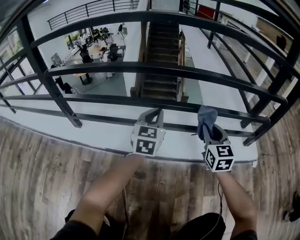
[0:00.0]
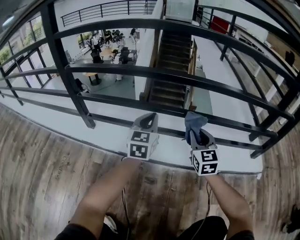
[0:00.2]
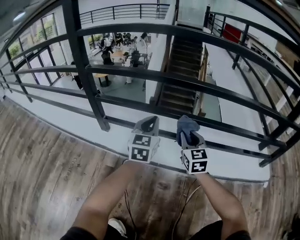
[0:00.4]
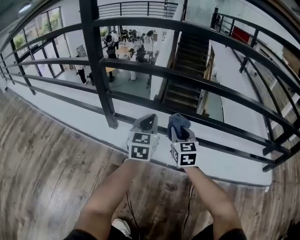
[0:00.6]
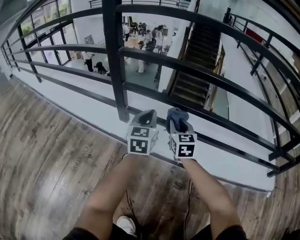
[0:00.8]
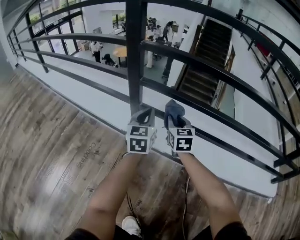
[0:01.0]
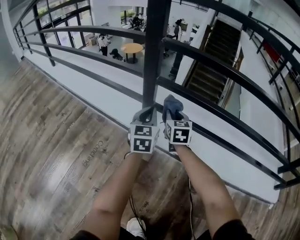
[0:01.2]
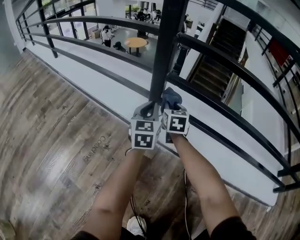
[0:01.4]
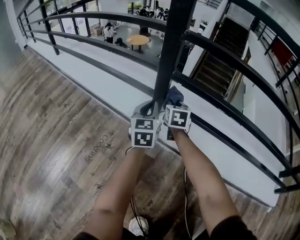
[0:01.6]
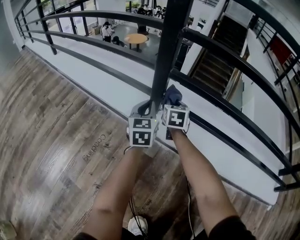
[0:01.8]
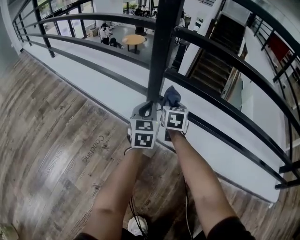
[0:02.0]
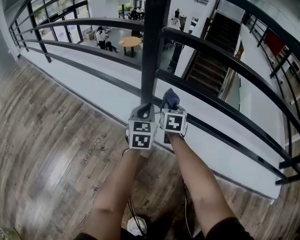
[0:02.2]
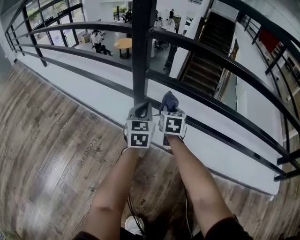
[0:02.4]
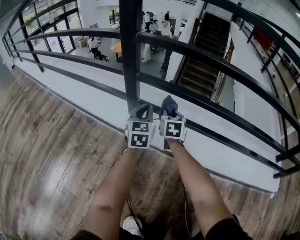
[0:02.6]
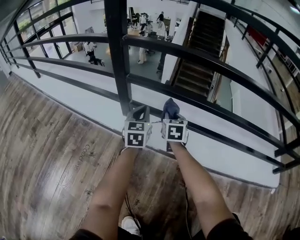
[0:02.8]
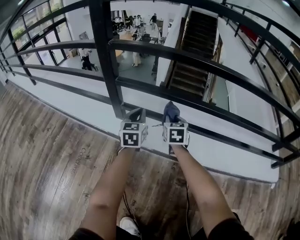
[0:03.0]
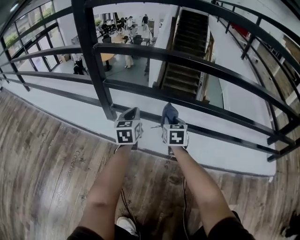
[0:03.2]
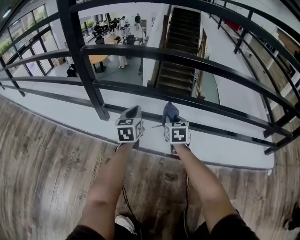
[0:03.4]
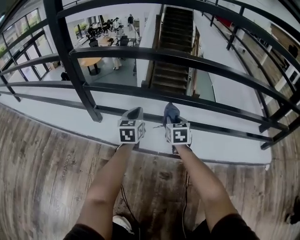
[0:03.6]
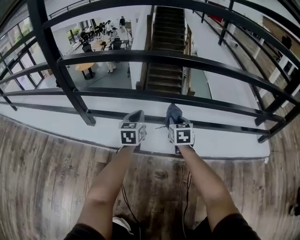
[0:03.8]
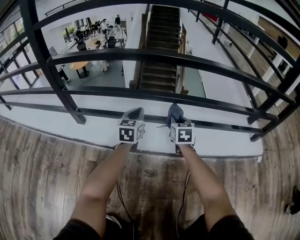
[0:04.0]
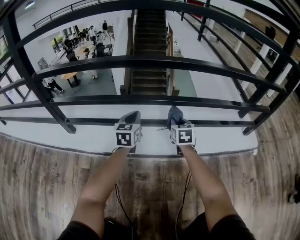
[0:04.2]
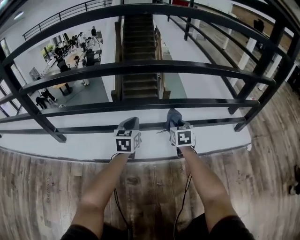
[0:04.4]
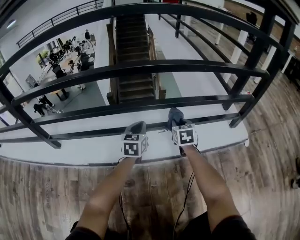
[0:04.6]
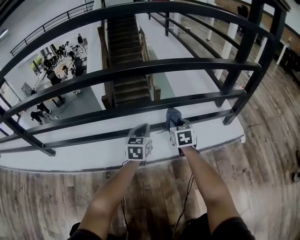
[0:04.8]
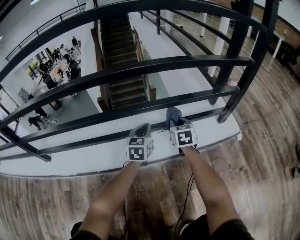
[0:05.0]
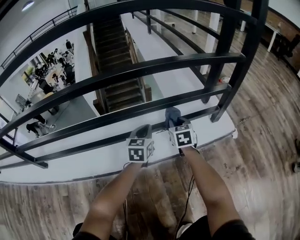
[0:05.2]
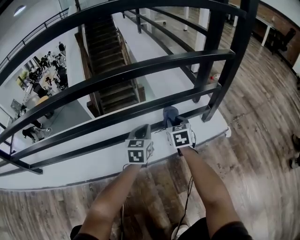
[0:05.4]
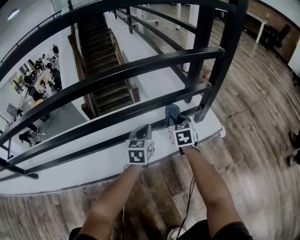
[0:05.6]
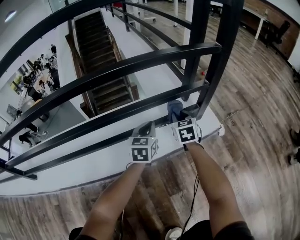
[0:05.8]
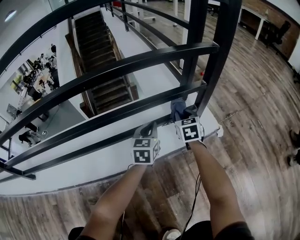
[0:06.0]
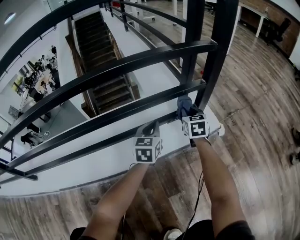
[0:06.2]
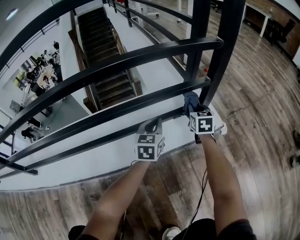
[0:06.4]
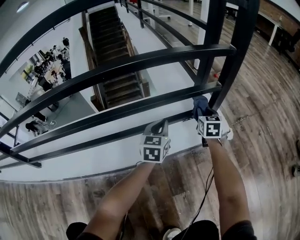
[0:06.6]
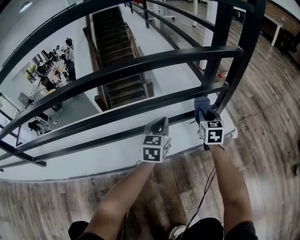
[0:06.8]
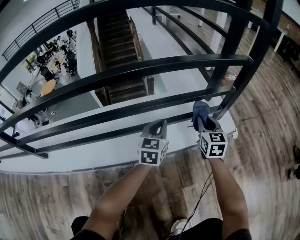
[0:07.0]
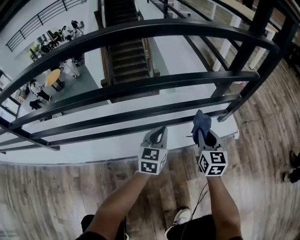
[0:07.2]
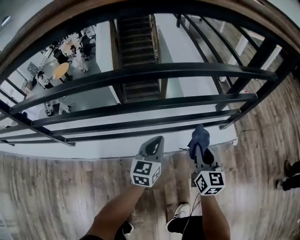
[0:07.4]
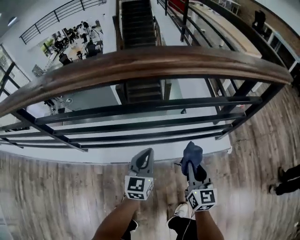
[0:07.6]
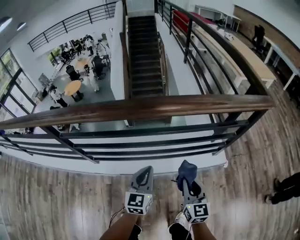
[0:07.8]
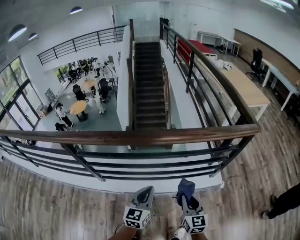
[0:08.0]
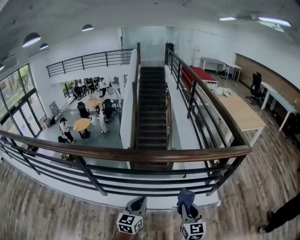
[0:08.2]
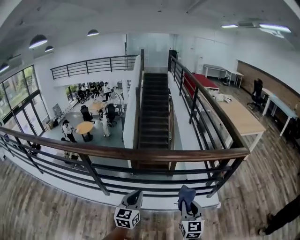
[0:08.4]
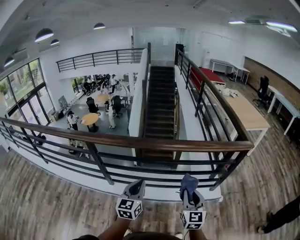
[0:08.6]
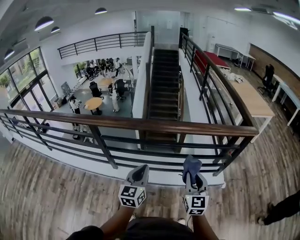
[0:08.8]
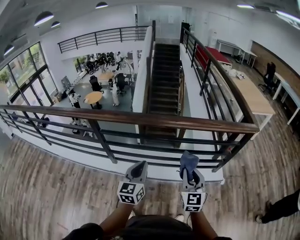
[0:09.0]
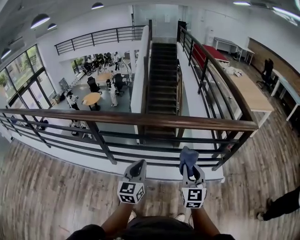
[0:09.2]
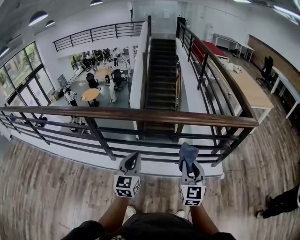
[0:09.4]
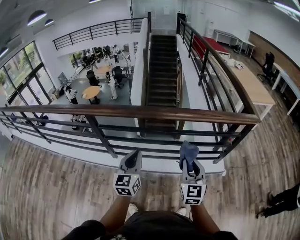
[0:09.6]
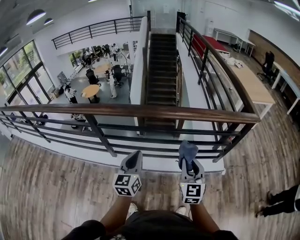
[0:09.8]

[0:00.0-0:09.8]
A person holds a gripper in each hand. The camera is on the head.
0:00.0 to 0:01.4: The pair of grippers is taken roughly 70 cm. The left gripper turns by roughly 30 degrees; the right gripper swivels about 30 degrees.
0:01.4 to 0:02.8: Both grippers move to the right, about 15 cm.
0:02.8 to 0:04.2: The grippers both shift to the right by roughly 40 cm. The left gripper swivels roughly 20 degrees.
0:04.2 to 0:05.6: Both grippers are carried to the right, approximately 50 cm. The left gripper swivels some 20 degrees.
0:05.6 to 0:07.0: The left gripper heads upward, covering approximately 5 cm. Meanwhile the right gripper shifts approximately 10 cm upward and backward, and moves roughly 10 cm to the right and comes back.
0:07.0 to 0:08.4: The pair of grippers is taken backward and to the left, roughly 50 cm. The two grippers go roughly 80 cm upward. The left gripper changes its angle by some 20 degrees. The right gripper changes its angle by roughly 20 degrees.
0:08.4 to 0:09.8: The grippers stay close to where they were, moving slightly.

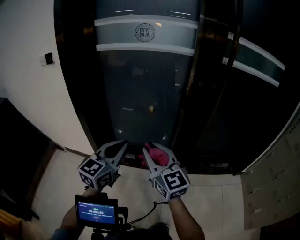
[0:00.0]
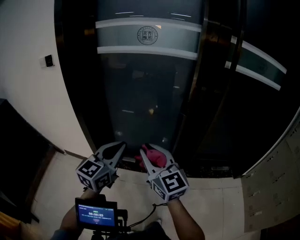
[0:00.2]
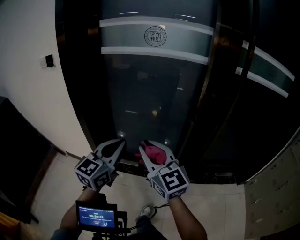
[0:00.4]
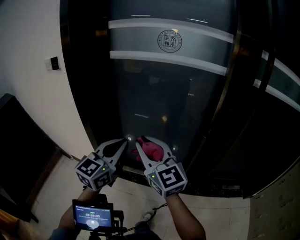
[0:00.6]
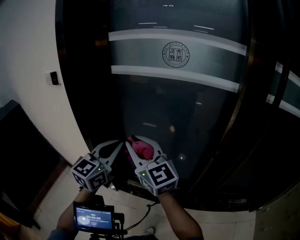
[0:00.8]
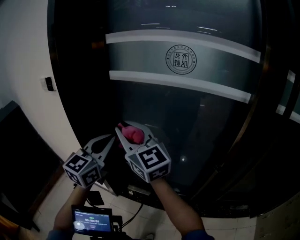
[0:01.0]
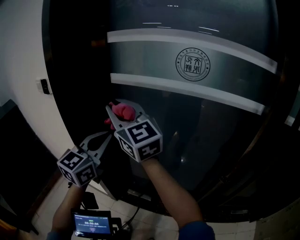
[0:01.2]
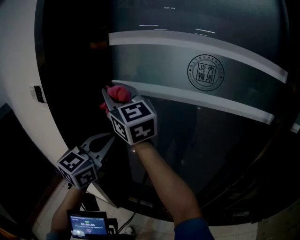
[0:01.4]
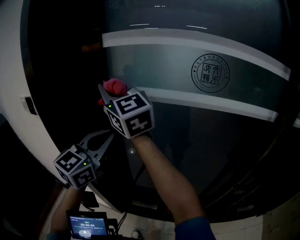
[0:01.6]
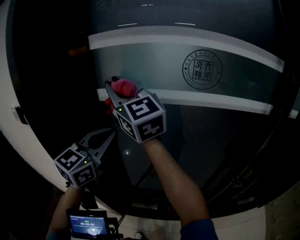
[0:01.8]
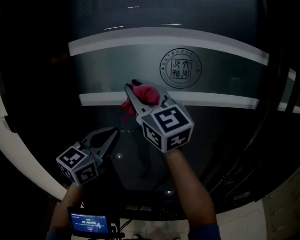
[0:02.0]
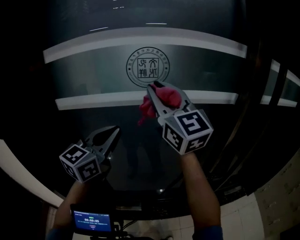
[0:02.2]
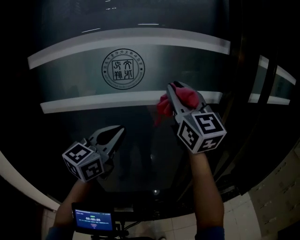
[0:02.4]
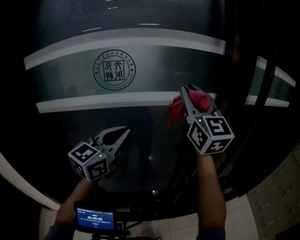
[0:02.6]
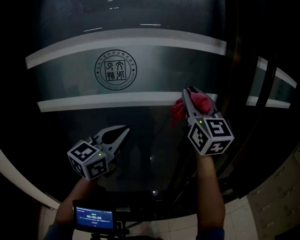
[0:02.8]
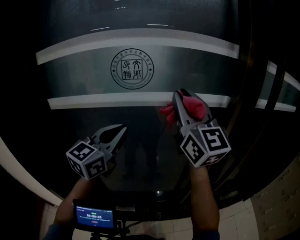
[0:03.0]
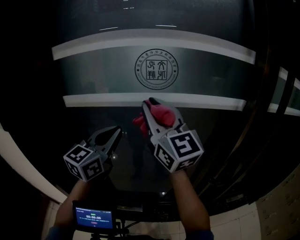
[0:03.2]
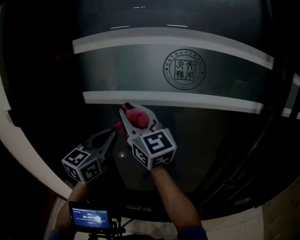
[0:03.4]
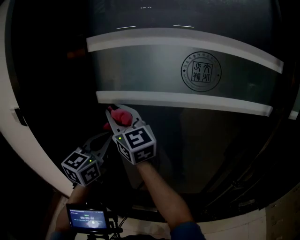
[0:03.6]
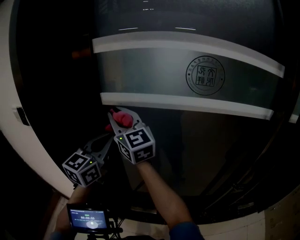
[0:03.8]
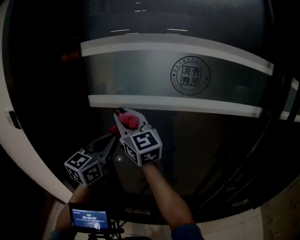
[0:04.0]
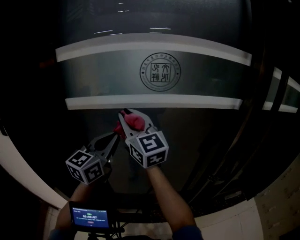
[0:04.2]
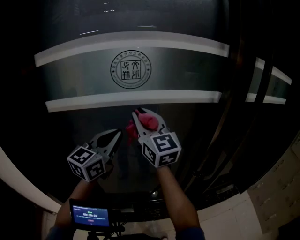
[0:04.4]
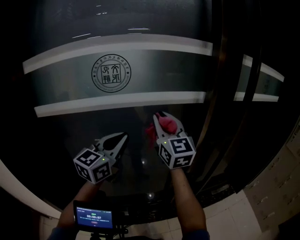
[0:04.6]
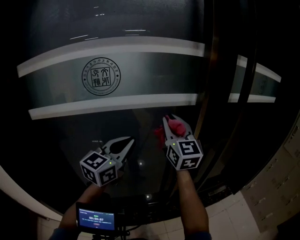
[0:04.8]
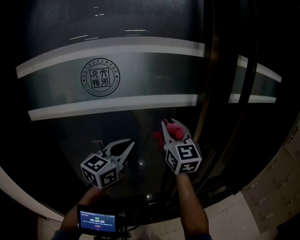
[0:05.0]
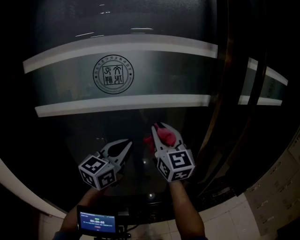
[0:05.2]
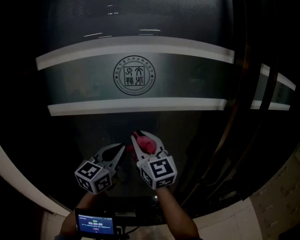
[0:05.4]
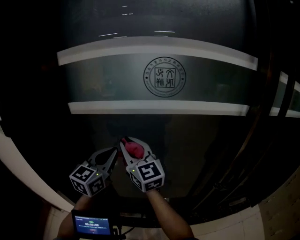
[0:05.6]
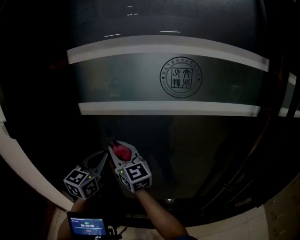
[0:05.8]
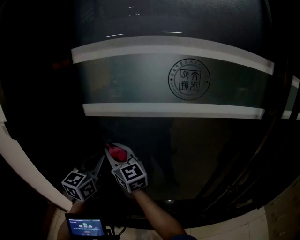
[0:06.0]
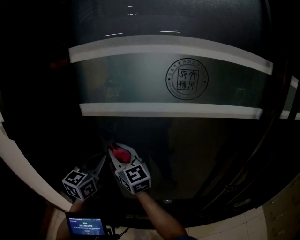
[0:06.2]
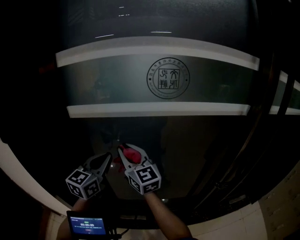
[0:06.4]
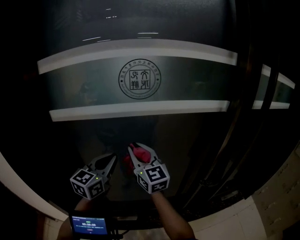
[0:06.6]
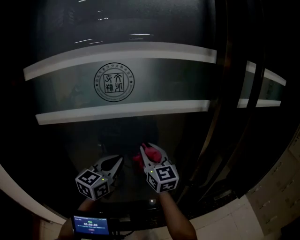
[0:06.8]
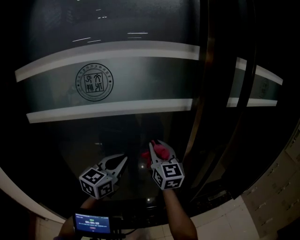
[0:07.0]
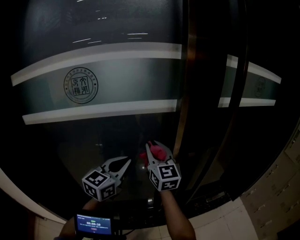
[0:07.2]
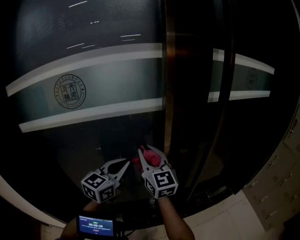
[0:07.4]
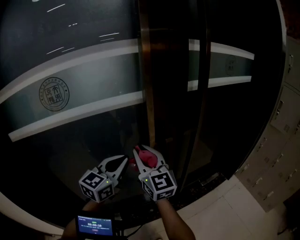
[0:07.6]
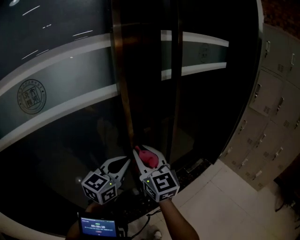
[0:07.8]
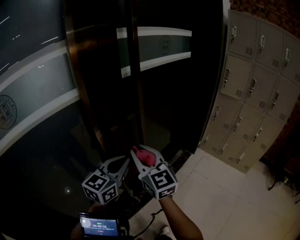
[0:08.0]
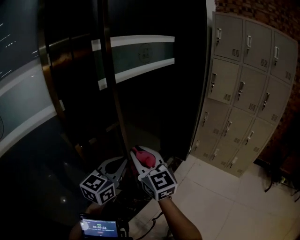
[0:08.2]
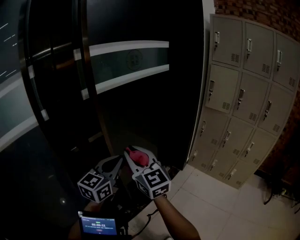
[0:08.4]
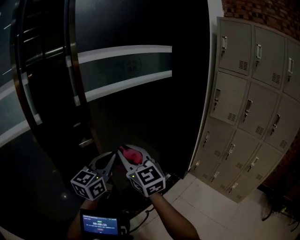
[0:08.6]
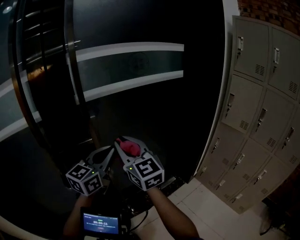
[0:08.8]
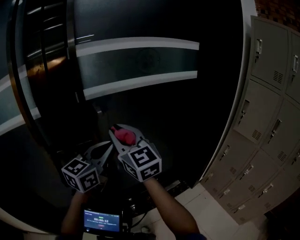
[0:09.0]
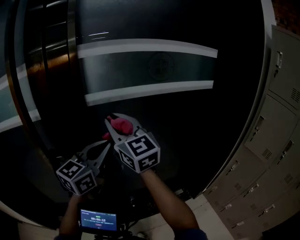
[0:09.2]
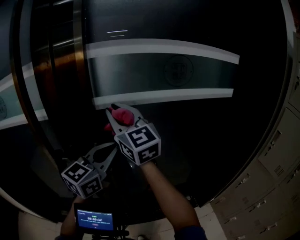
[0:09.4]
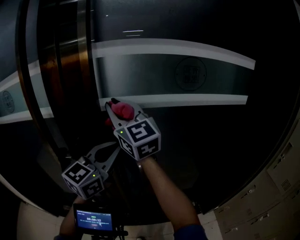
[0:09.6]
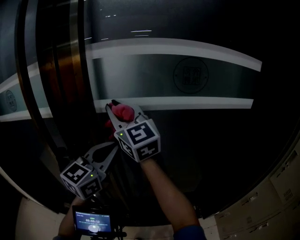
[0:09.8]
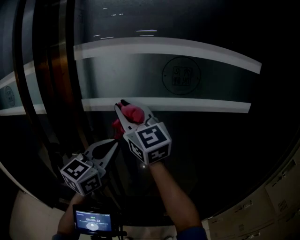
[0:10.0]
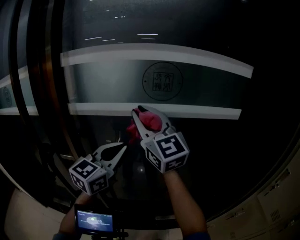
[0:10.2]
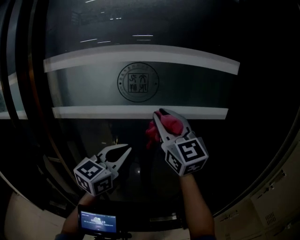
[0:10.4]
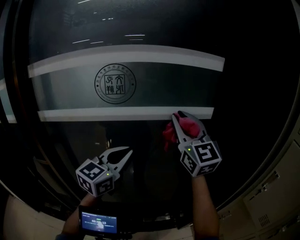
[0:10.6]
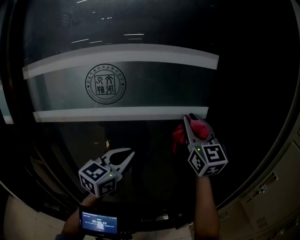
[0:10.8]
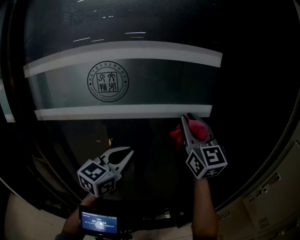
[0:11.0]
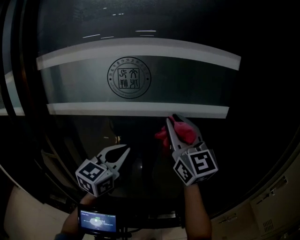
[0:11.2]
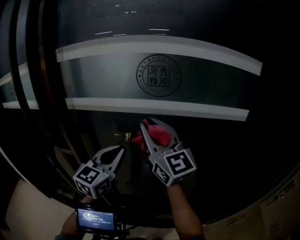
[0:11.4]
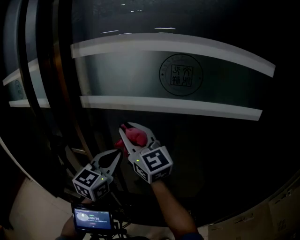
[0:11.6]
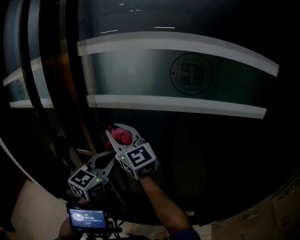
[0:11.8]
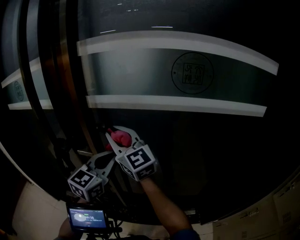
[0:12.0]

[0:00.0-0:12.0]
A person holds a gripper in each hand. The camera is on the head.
0:00.0 to 0:01.6: The two grippers travel together, forward, about 60 cm. The right gripper moves upward, roughly 25 cm, and turns by about 20 degrees.
0:01.6 to 0:03.0: The right gripper shifts by some 50 cm, and rotates some 40 degrees; the left gripper changes place by about 25 cm.
0:03.0 to 0:04.4: The right gripper shifts roughly 10 cm downward, and goes to the left and returns, approximately 40 cm each way. The left gripper moves approximately 25 cm to the left and comes back.
0:04.4 to 0:06.0: The left gripper changes place by roughly 25 cm, and rotates about 20 degrees. The right gripper moves roughly 30 cm, and changes its angle by approximately 20 degrees.
0:06.0 to 0:07.6: Both grippers are carried about 50 cm. The left gripper swivels about 40 degrees. Meanwhile the right gripper changes its angle by about 40 degrees.
0:07.6 to 0:09.0: The left gripper changes place by approximately 40 cm; the right gripper moves roughly 40 cm.
0:09.0 to 0:10.4: The two grippers go some 30 cm to the right and forward.
0:10.4 to 0:12.0: The left gripper ends up roughly 20 cm from where it was. The right gripper ends up approximately 35 cm from where it was, and swivels roughly 30 degrees.

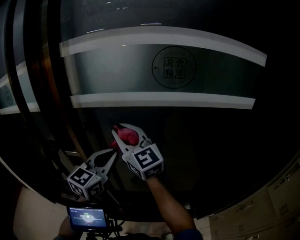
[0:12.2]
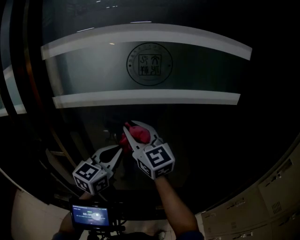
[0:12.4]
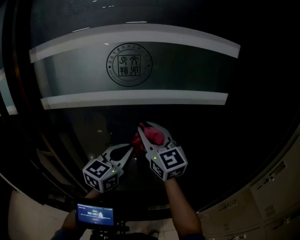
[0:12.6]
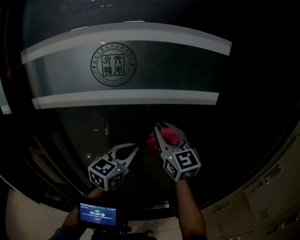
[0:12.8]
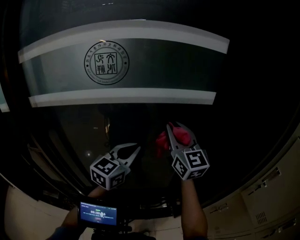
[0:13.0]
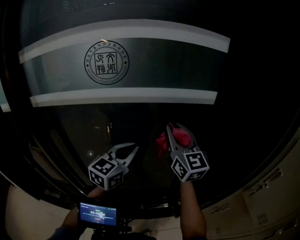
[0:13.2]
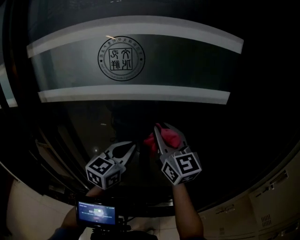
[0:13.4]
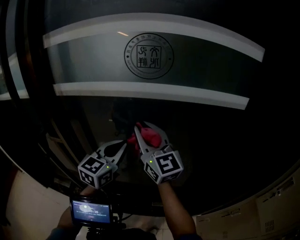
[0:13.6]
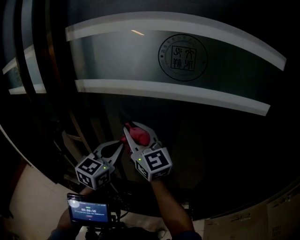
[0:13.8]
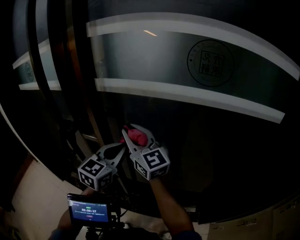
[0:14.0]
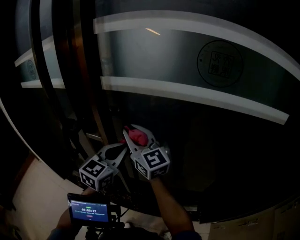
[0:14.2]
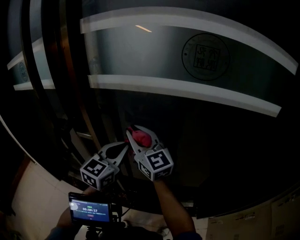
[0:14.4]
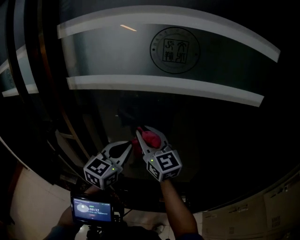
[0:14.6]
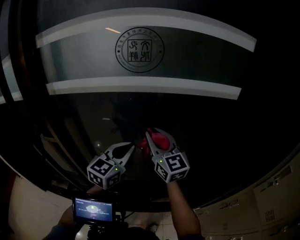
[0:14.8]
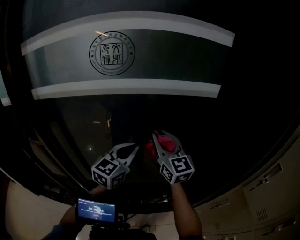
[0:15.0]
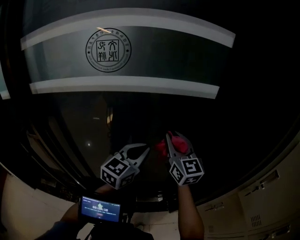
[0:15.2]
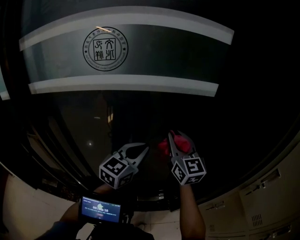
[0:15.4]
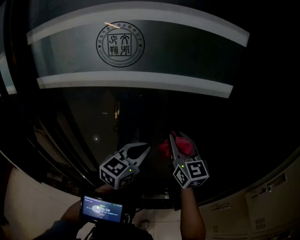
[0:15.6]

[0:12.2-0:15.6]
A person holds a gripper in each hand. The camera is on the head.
0:13.8 to 0:15.6: The left gripper shifts by approximately 30 cm, and turns by about 20 degrees. The right gripper moves some 35 cm, and turns by roughly 30 degrees.
